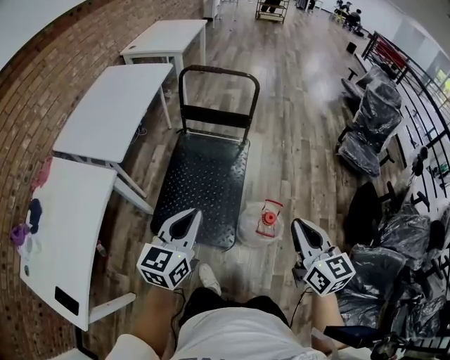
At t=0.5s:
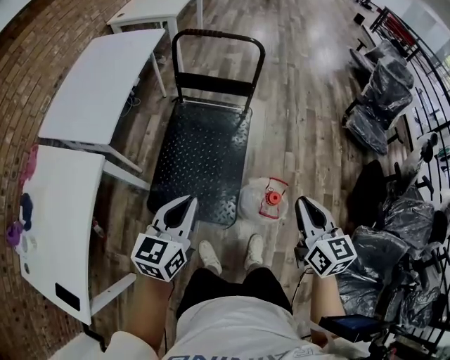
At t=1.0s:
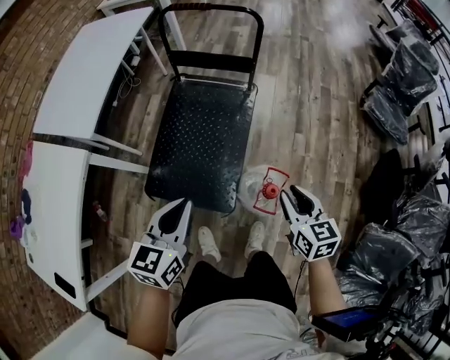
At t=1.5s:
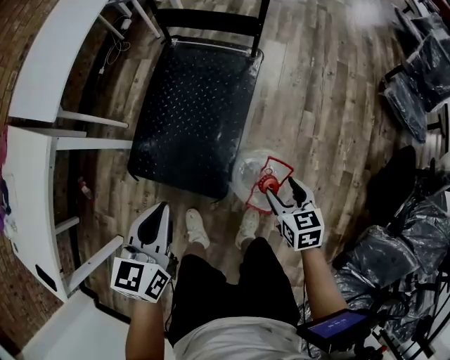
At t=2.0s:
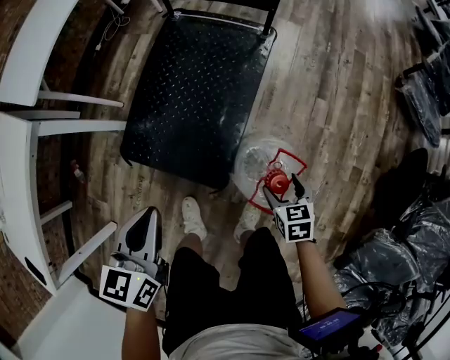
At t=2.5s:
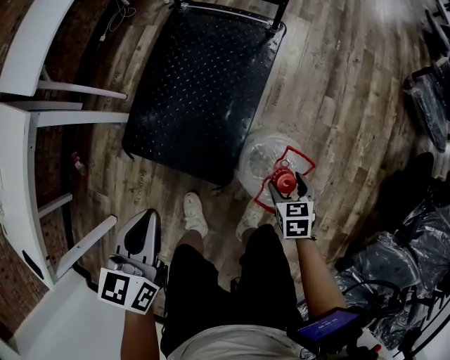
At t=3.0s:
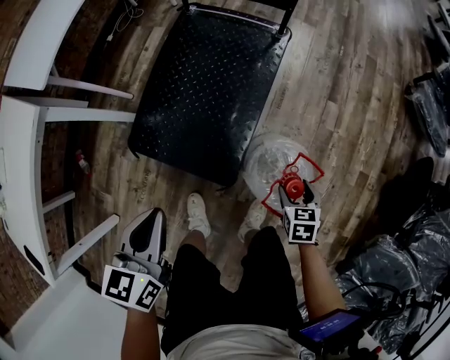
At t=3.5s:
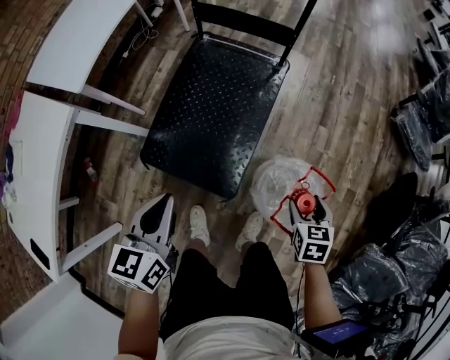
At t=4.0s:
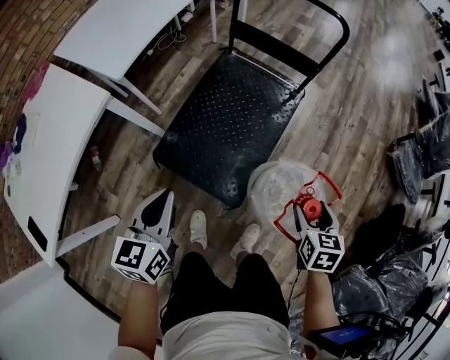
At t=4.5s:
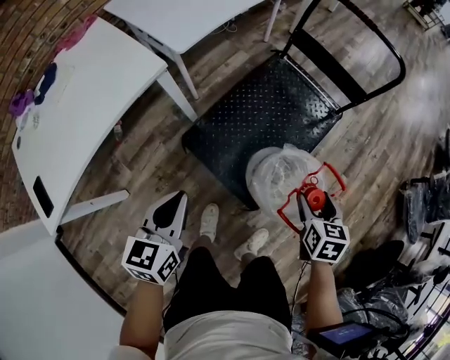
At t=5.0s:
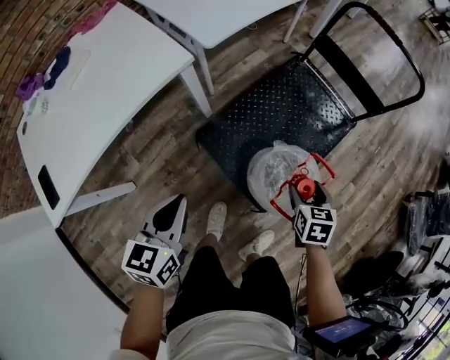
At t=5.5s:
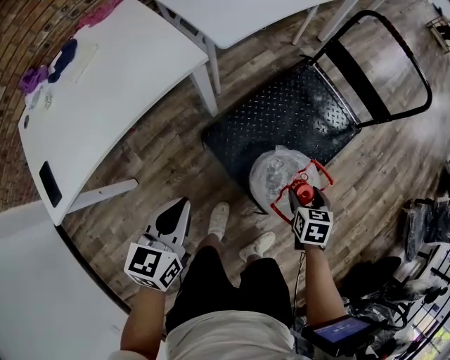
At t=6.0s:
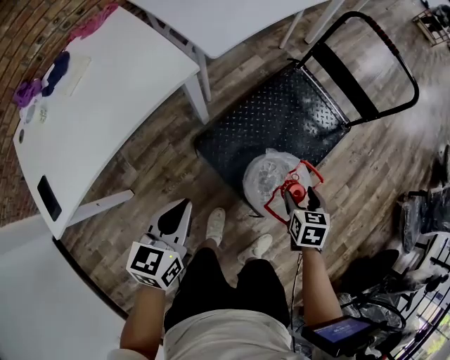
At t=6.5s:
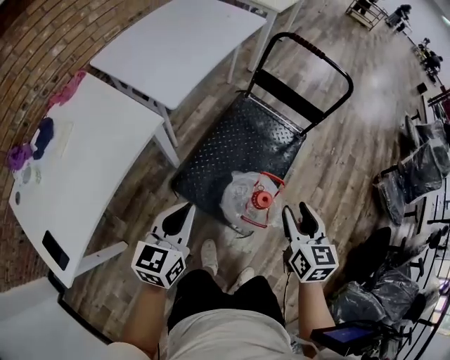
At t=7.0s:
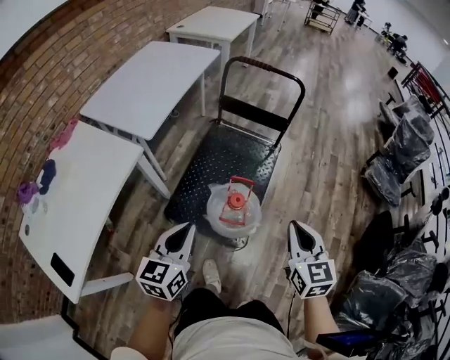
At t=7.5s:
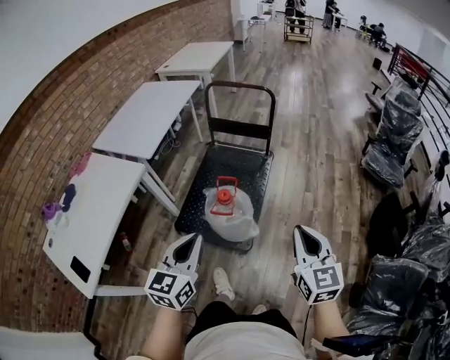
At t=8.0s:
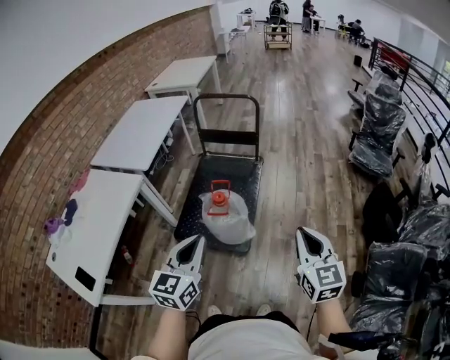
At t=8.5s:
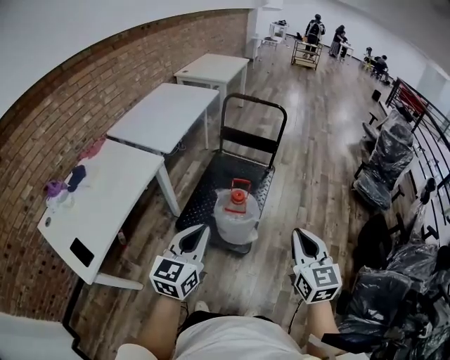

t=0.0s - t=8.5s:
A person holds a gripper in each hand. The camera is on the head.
t=0.0s - t=2.0s: The left gripper travels downward by roughly 25 cm, and turns by roughly 30 degrees; the right gripper goes about 50 cm downward, tilts its fingers approximately 40 degrees downward, and opens.
t=2.0s - t=4.0s: The right gripper shifts roughly 20 cm upward; the left gripper travels to the left and upward by approximately 10 cm.
t=4.0s - t=6.5s: The left gripper shifts approximately 15 cm to the left and upward. The right gripper is displaced to the left and upward by roughly 25 cm, and rotates about 20 degrees.
t=6.5s - t=8.5s: Both grippers move backward, upward and to the right, some 30 cm. The right gripper rotates some 20 degrees, and closes.

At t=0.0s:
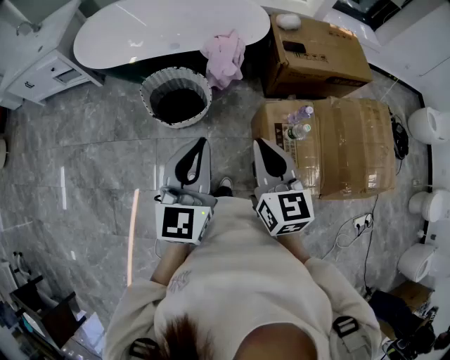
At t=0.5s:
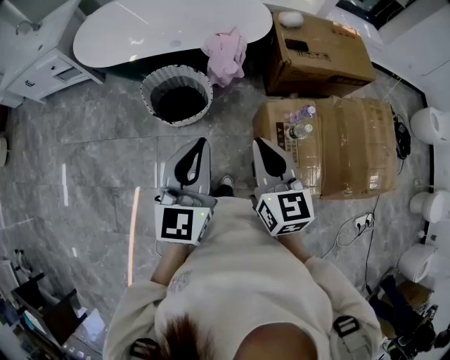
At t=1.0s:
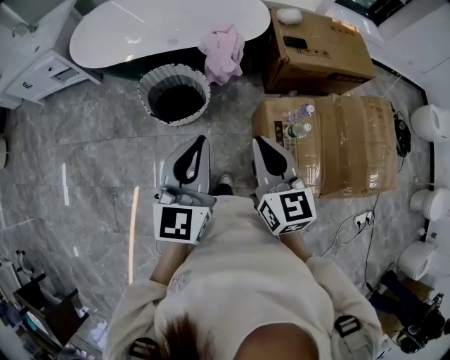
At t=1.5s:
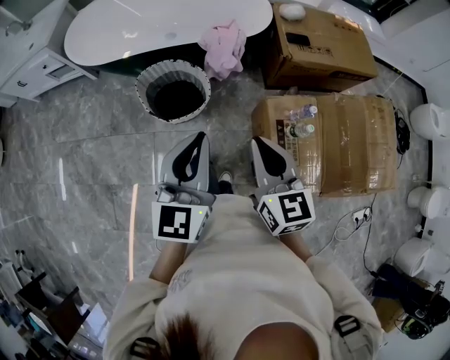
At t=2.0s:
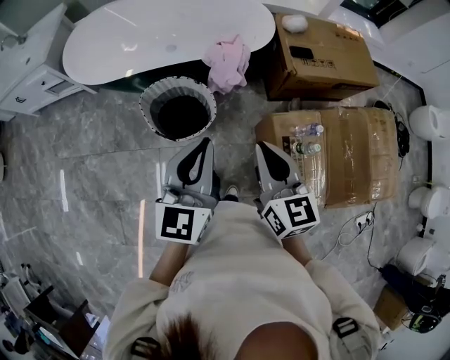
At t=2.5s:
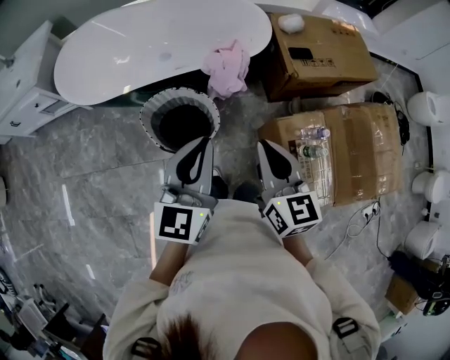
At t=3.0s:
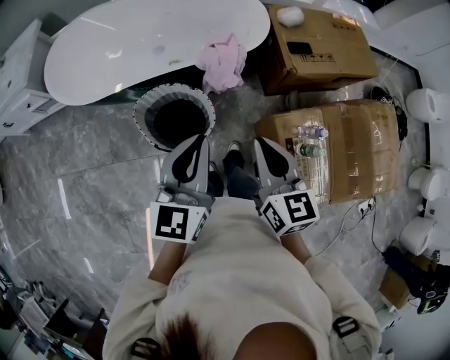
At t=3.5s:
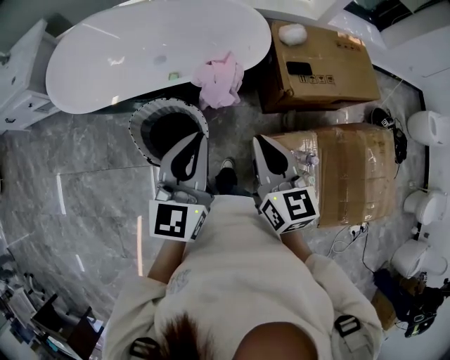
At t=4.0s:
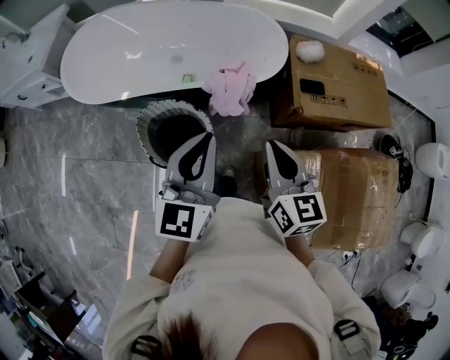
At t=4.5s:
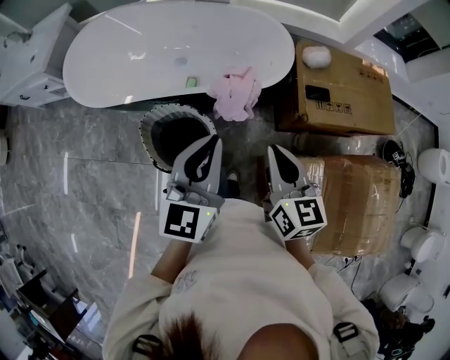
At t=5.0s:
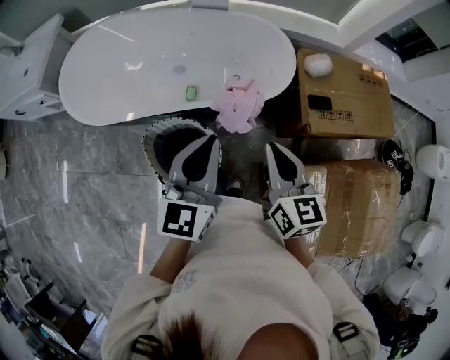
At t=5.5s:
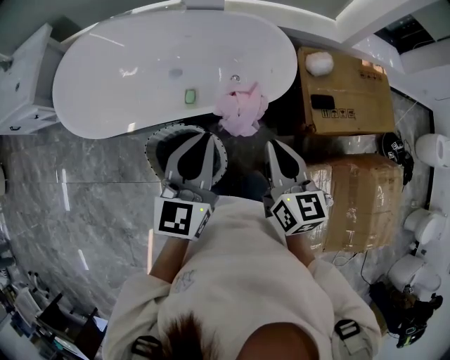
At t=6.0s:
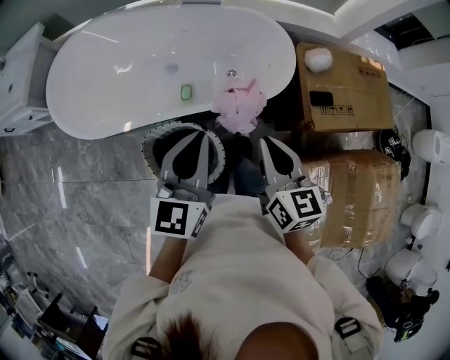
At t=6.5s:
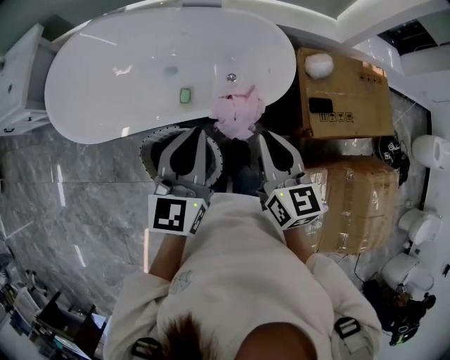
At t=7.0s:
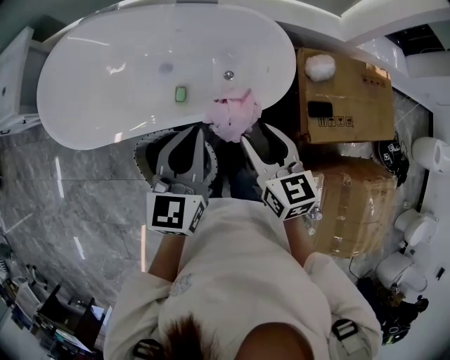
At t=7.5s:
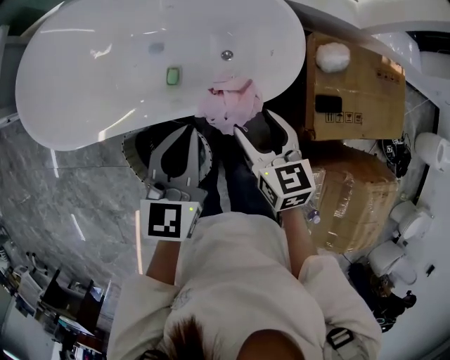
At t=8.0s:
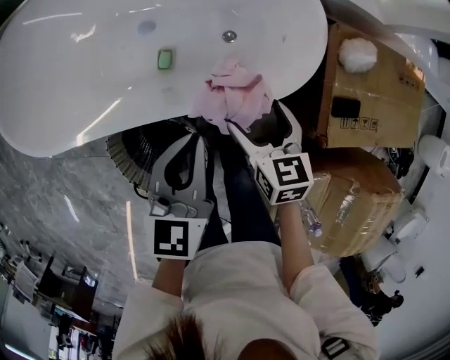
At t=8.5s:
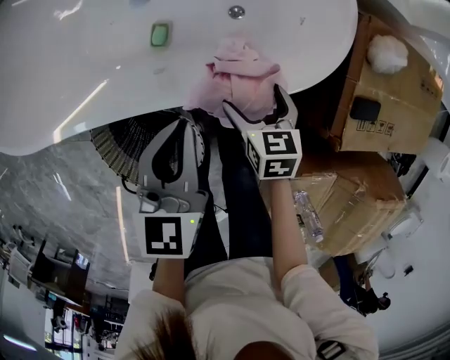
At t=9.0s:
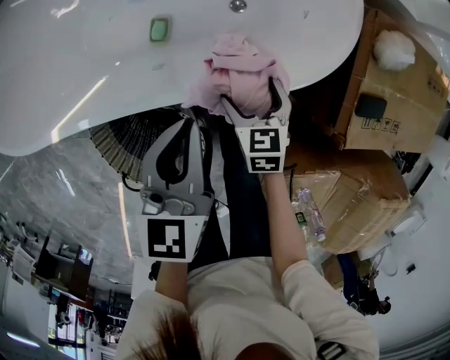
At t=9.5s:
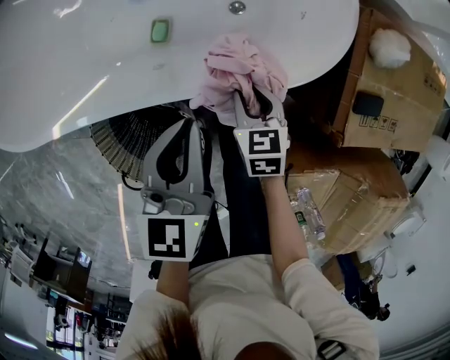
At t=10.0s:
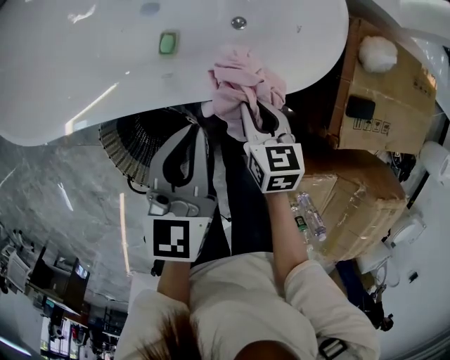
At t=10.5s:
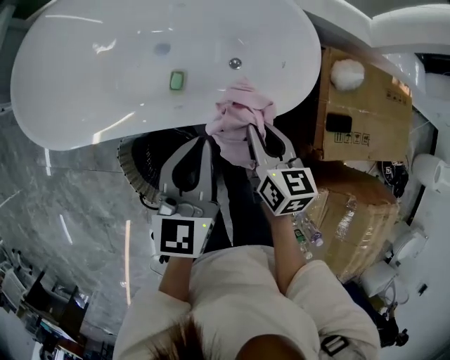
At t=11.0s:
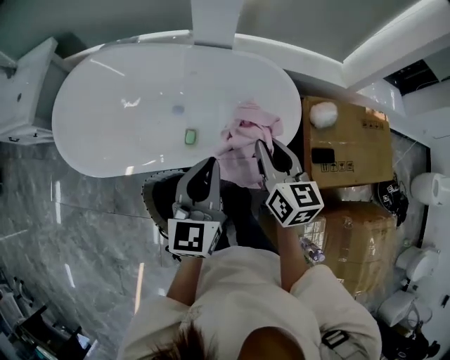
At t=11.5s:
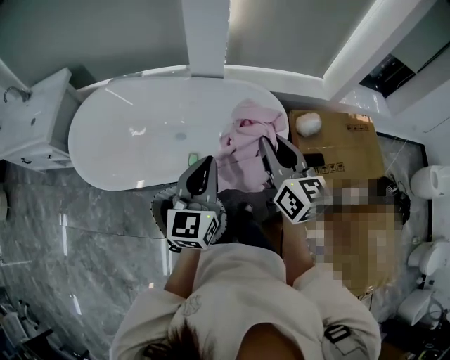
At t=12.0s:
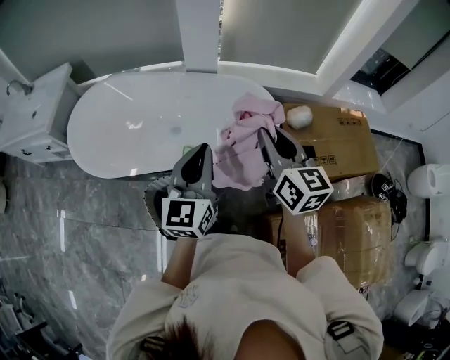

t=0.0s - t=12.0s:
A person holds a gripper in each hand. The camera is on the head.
t=0.0s - t=2.0s: The two grippers go some 10 cm forward.
t=2.0s - t=4.0s: The two grippers go approximately 20 cm forward.
t=4.0s - t=6.0s: Both grippers travel together forward and to the left, some 20 cm.
t=6.0s - t=8.0s: Both grippers move downward and forward, approximately 30 cm. The right gripper turns by roughly 20 degrees, and opens; the left gripper rotates roughly 20 degrees.
t=8.0s - t=10.0s: The right gripper shifts approximately 10 cm downward, and closes up.
t=10.0s - t=12.0s: The left gripper shifts roughly 30 cm upward, and rotates roughly 30 degrees. The right gripper heads upward, covering about 50 cm, and angles its fingers upward, by approximately 40 degrees.

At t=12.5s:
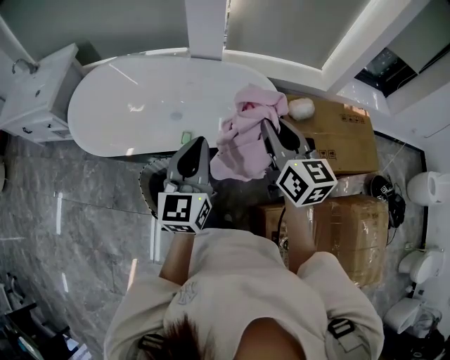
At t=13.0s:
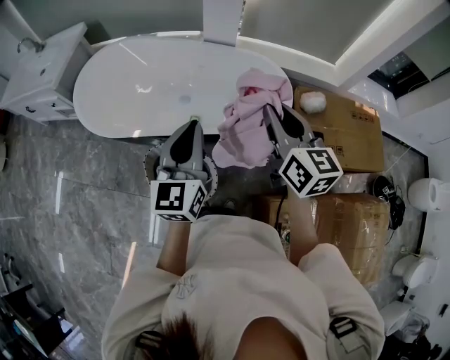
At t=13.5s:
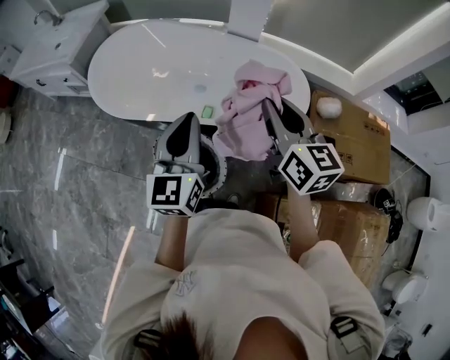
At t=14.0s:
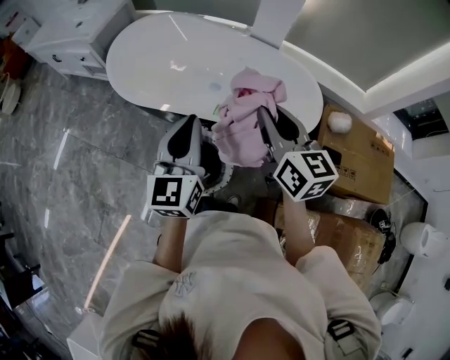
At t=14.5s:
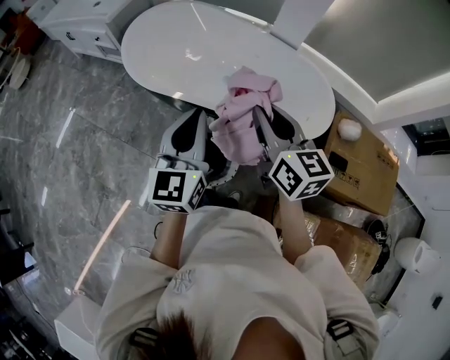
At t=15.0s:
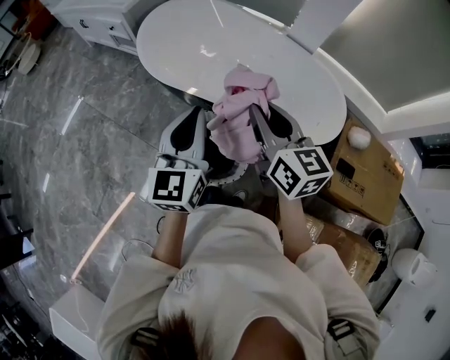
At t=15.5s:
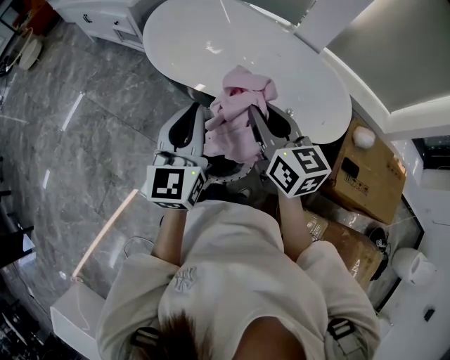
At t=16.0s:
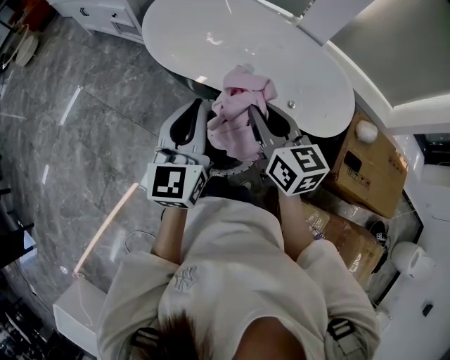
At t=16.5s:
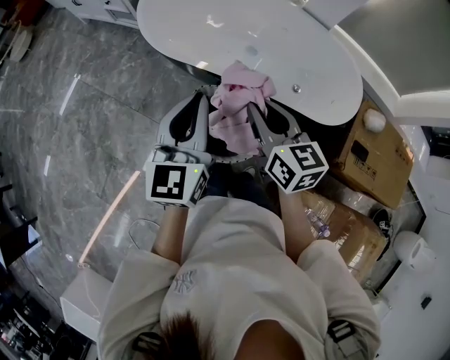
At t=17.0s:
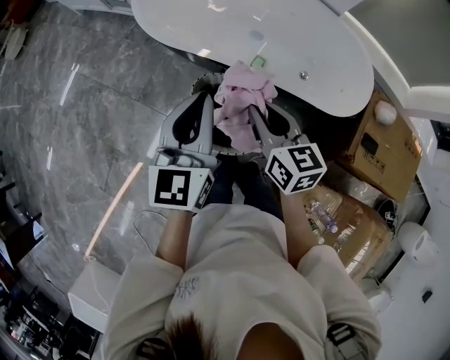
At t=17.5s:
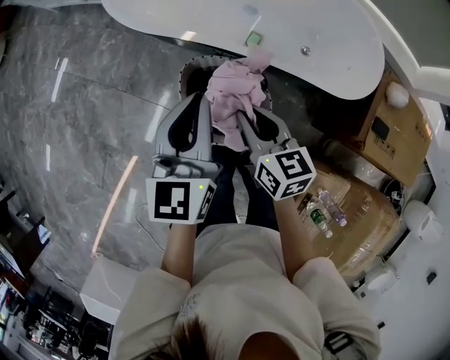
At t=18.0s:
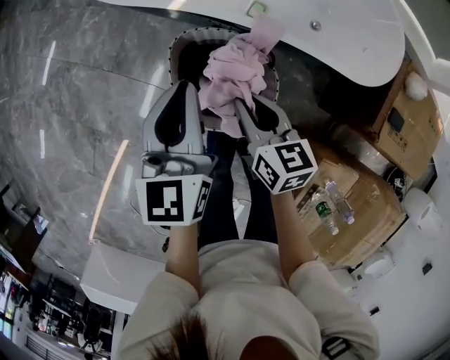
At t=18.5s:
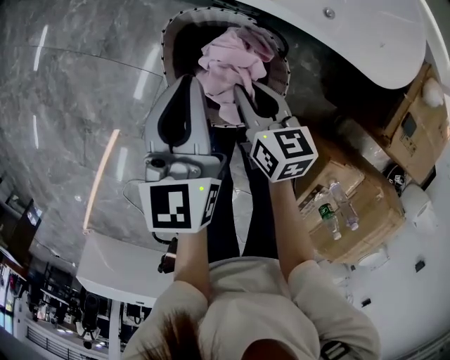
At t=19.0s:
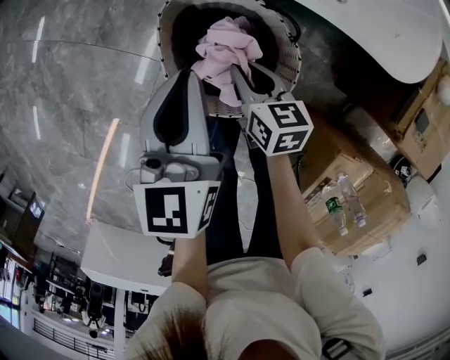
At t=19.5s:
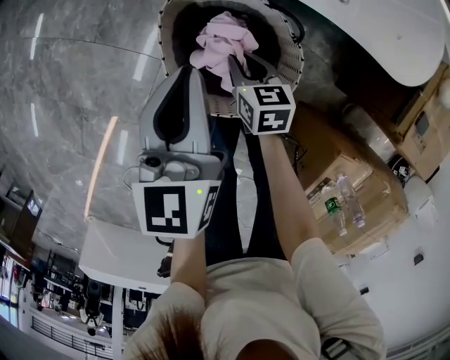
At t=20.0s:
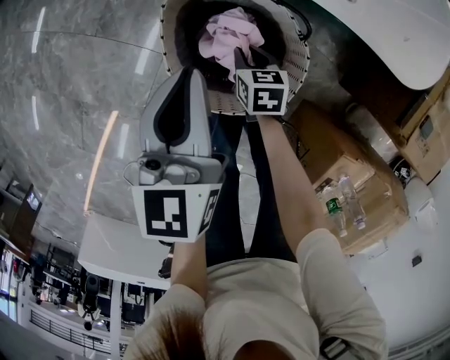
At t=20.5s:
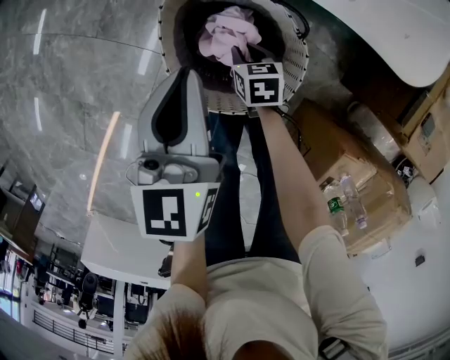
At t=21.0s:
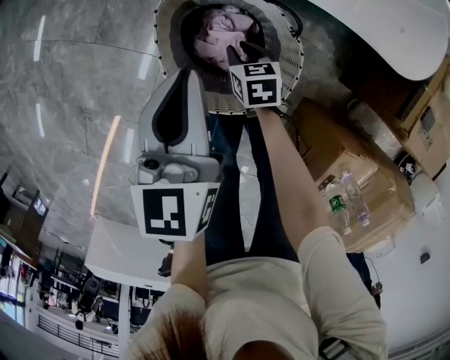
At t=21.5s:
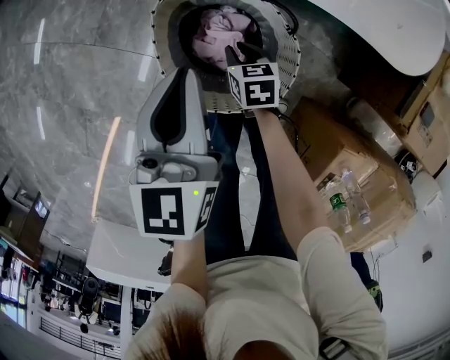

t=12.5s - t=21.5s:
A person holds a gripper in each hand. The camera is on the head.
t=12.5s - t=14.5s: Both grippers travel together to the left, about 20 cm. The left gripper swivels approximately 20 degrees. Meanwhile the right gripper swivels some 20 degrees.
t=14.5s - t=17.0s: The left gripper shifts roughly 10 cm to the left and downward; the right gripper is displaced downward and to the left by roughly 20 cm.
t=17.0s - t=19.5s: Both grippers move downward, some 35 cm. The right gripper swivels approximately 30 degrees.
t=19.5s - t=21.5s: The right gripper travels downward by roughly 5 cm.
